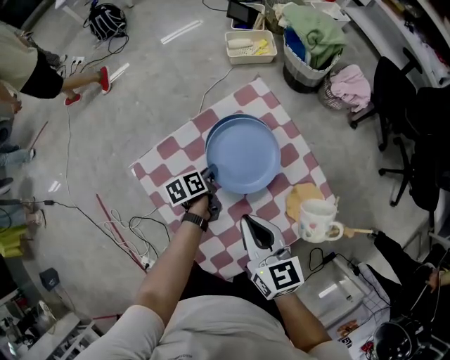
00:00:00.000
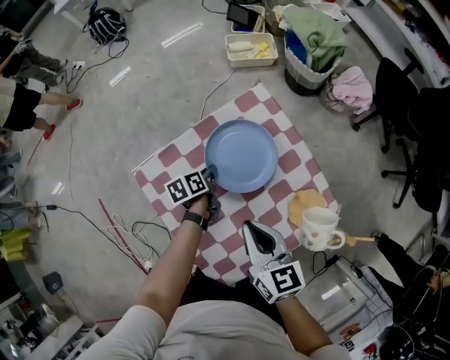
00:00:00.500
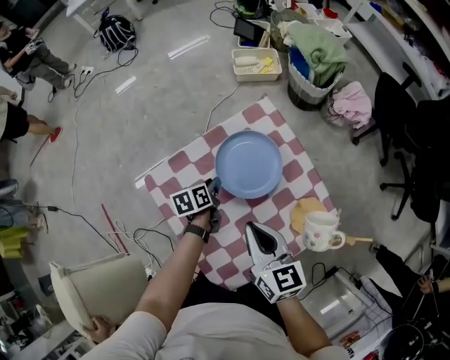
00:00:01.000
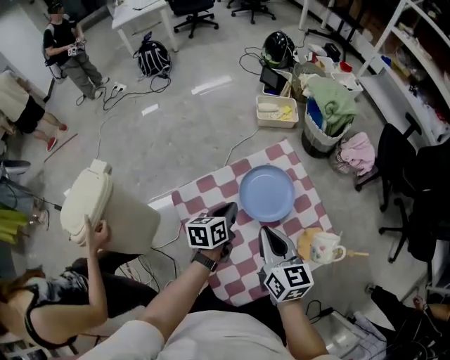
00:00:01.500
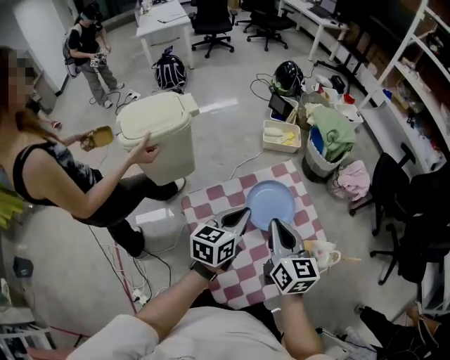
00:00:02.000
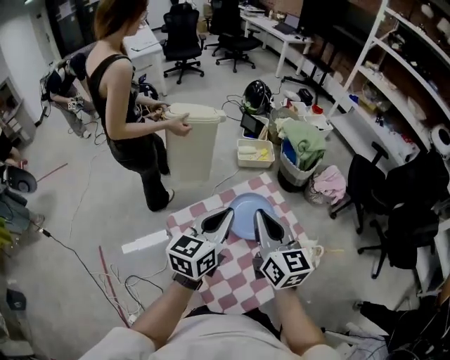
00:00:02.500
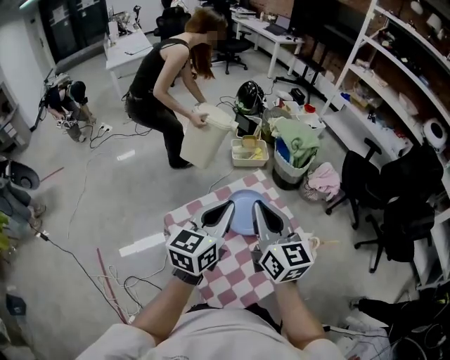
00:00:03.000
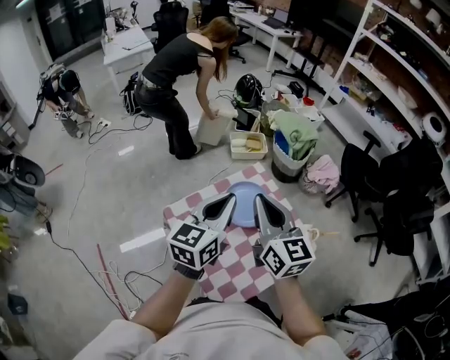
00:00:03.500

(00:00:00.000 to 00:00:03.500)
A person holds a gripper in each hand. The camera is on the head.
00:00:00.000 - 00:00:02.000: The right gripper goes approximately 10 cm upward. The left gripper travels upward by approximately 30 cm, and swivels roughly 50 degrees.
00:00:02.000 - 00:00:03.500: Both grippers move upward, some 15 cm.

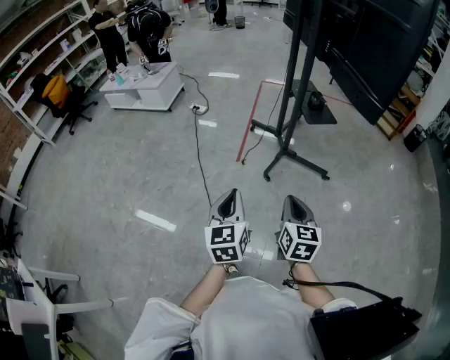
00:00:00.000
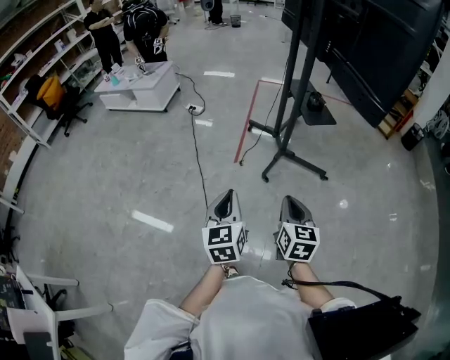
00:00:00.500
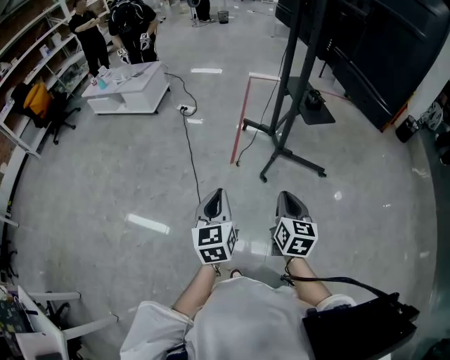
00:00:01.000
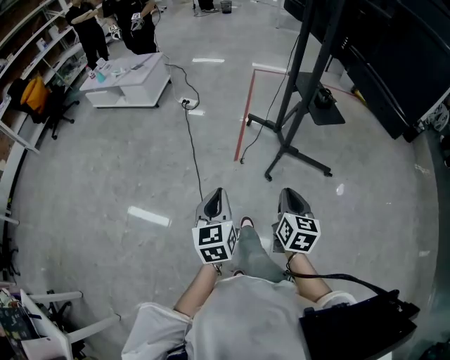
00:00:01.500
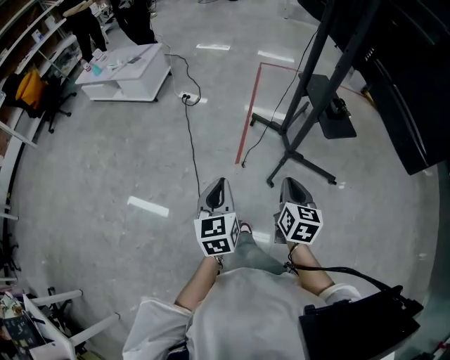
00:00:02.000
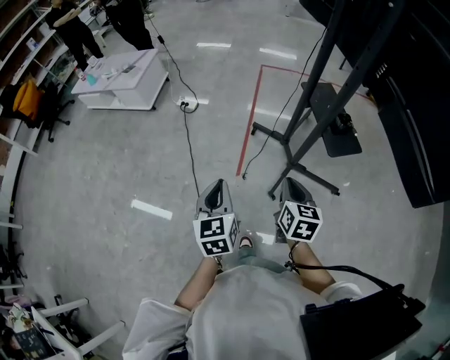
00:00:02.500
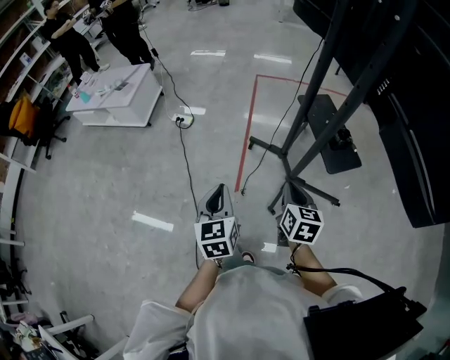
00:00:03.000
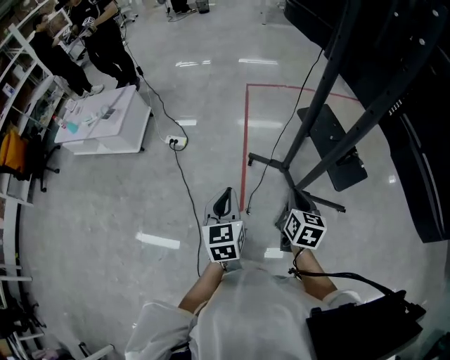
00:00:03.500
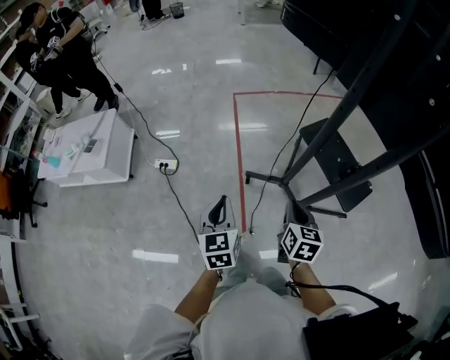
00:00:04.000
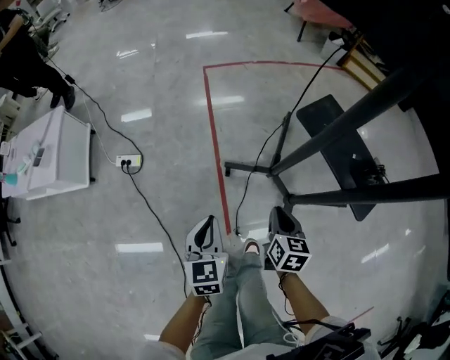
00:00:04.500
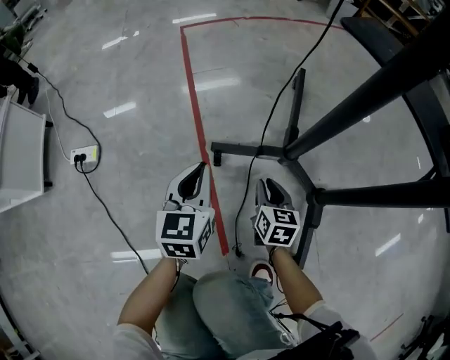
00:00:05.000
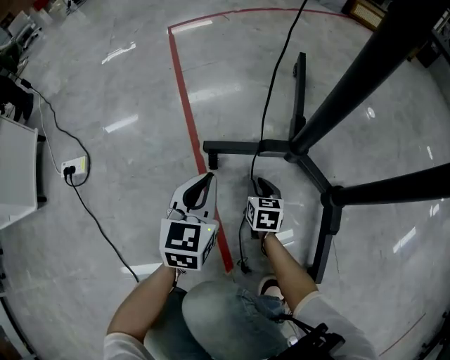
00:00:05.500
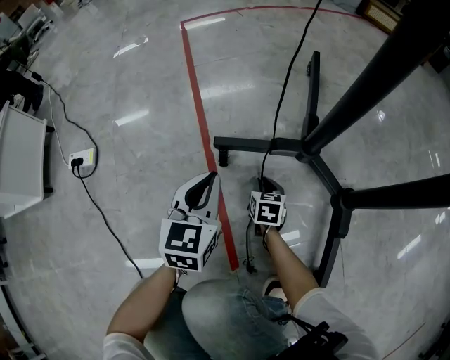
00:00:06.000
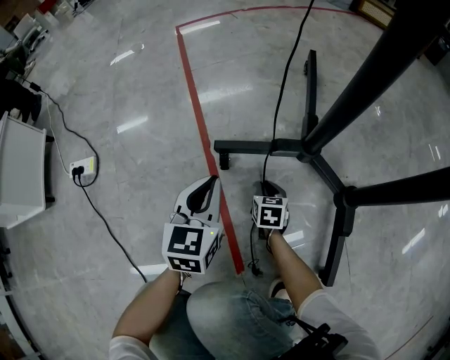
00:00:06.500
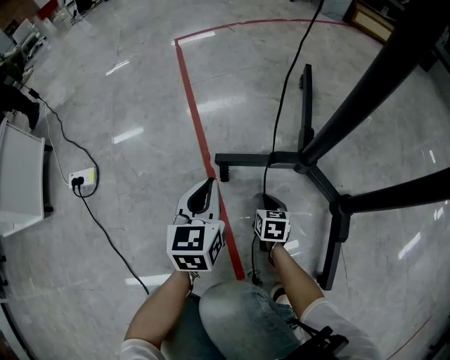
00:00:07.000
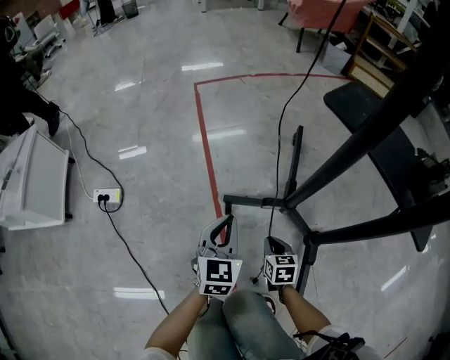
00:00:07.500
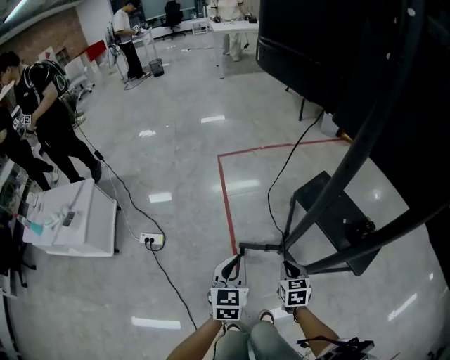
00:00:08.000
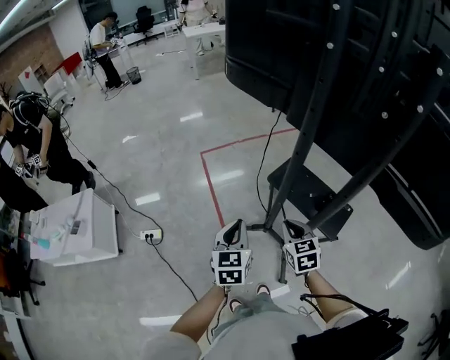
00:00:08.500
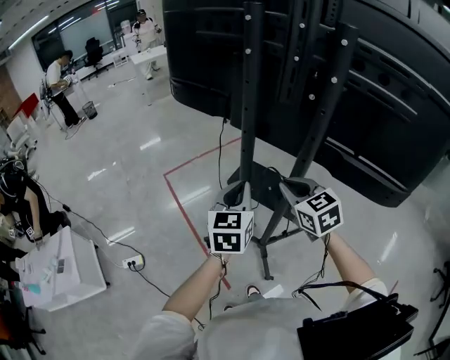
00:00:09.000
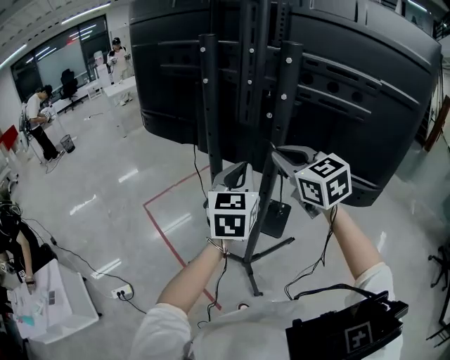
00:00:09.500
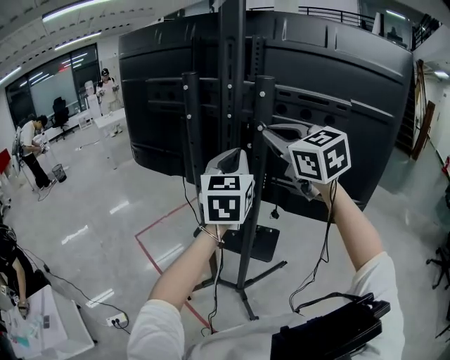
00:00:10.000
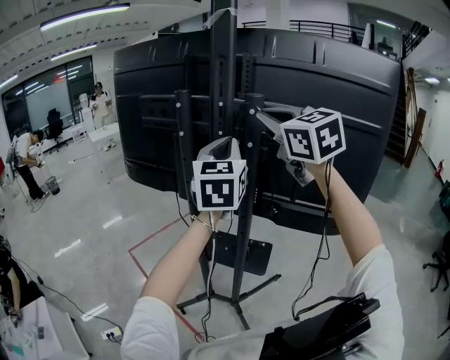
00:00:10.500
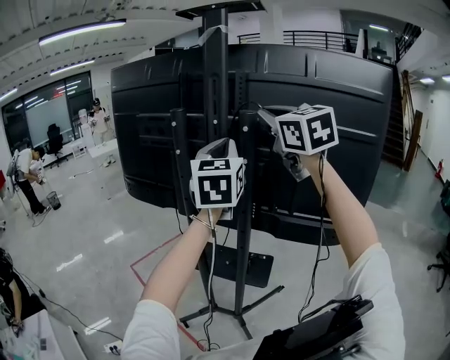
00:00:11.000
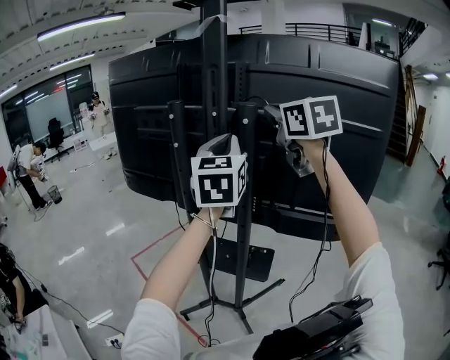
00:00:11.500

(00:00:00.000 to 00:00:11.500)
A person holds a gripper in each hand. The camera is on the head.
00:00:00.000 - 00:00:02.000: Both grippers move forward, approximately 30 cm.
00:00:02.000 - 00:00:04.000: The two grippers travel together, forward, some 50 cm. The right gripper turns by roughly 20 degrees.
00:00:04.000 - 00:00:06.000: Both grippers travel together downward, some 70 cm. The left gripper changes its angle by approximately 30 degrees.
00:00:06.000 - 00:00:07.500: Both grippers travel together upward, some 20 cm.
00:00:07.500 - 00:00:09.500: Both grippers move upward, roughly 90 cm. The right gripper tips its fingers upward by approximately 30 degrees. Meanwhile the left gripper changes its angle by some 40 degrees.
00:00:09.500 - 00:00:11.500: Both grippers travel together upward, about 25 cm.

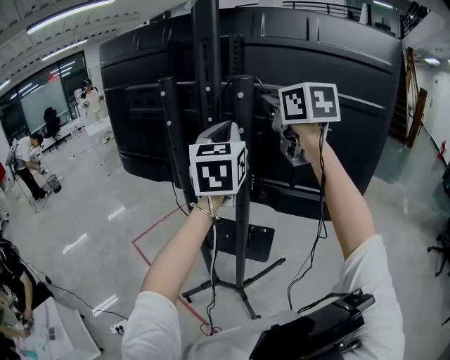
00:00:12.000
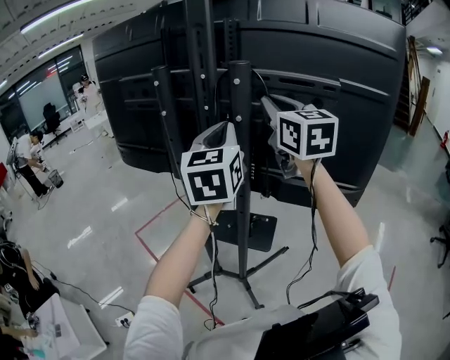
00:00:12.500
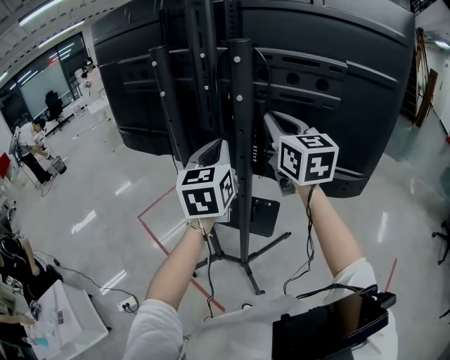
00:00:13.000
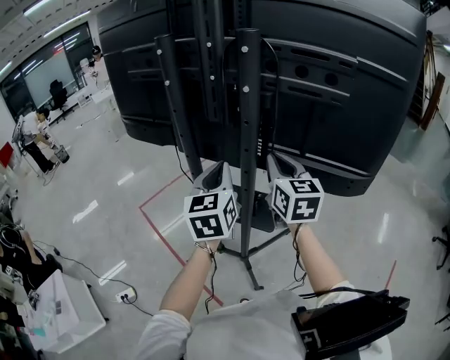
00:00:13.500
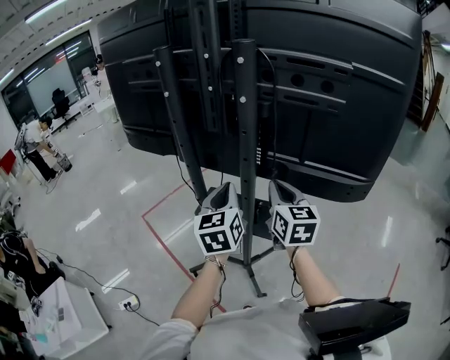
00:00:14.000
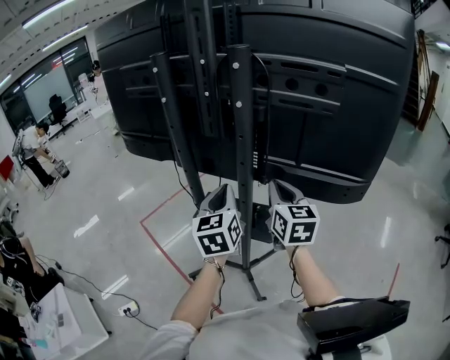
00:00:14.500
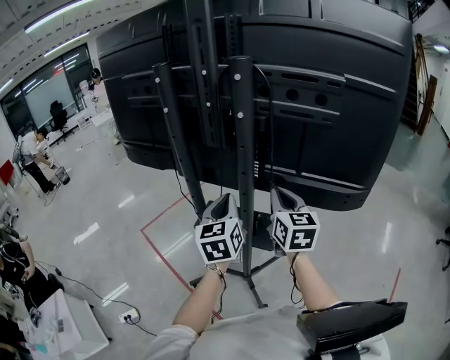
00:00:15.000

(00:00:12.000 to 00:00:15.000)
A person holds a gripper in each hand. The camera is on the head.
00:00:12.000 - 00:00:13.500: Both grippers travel together downward, some 20 cm.
00:00:13.500 - 00:00:15.000: The grippers move only a little.

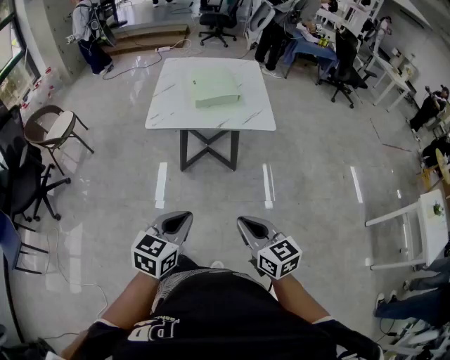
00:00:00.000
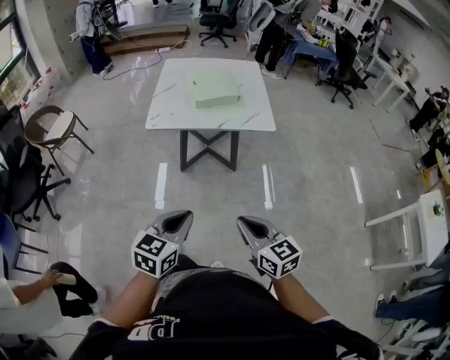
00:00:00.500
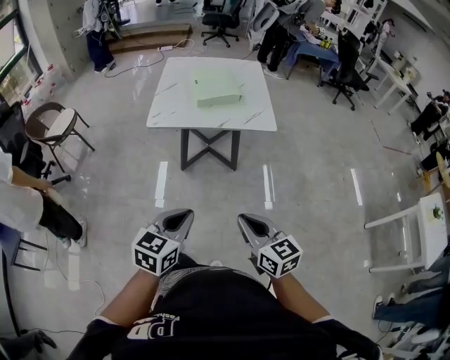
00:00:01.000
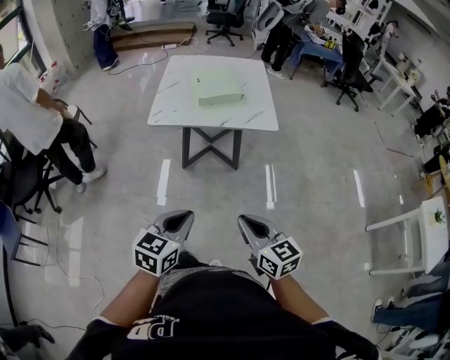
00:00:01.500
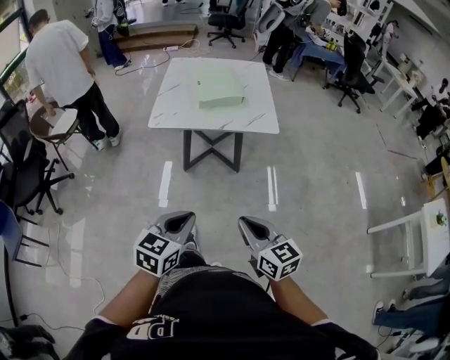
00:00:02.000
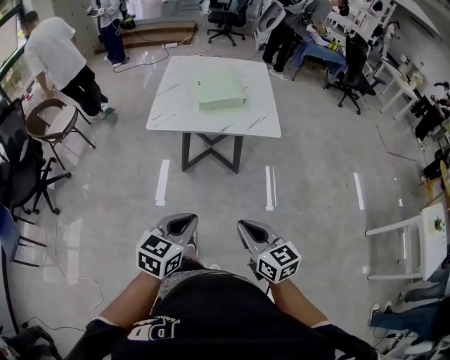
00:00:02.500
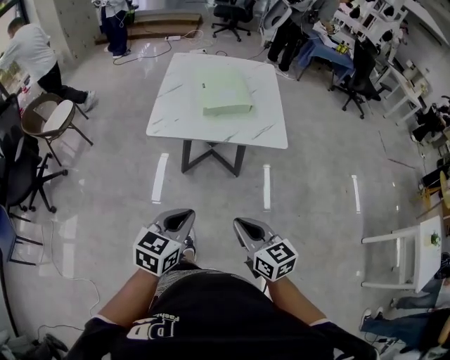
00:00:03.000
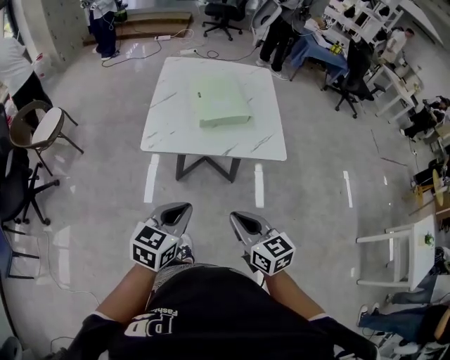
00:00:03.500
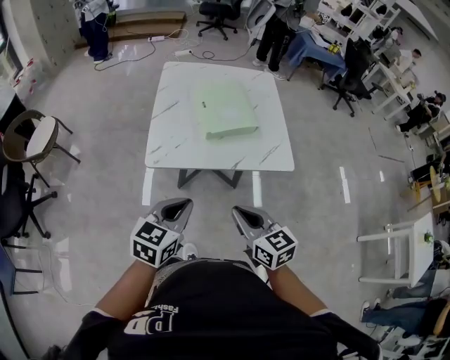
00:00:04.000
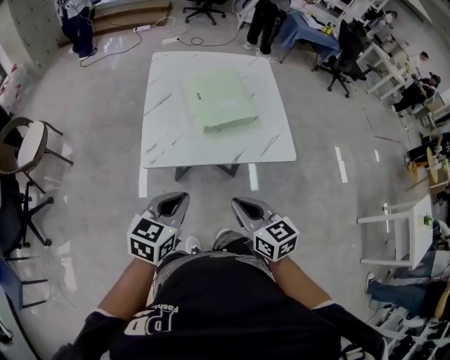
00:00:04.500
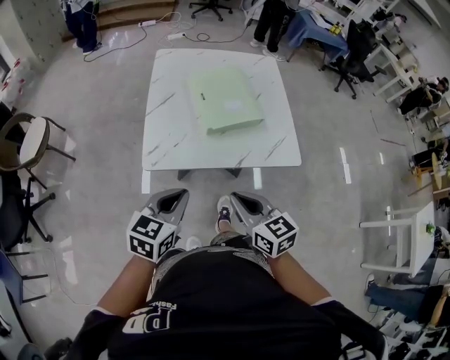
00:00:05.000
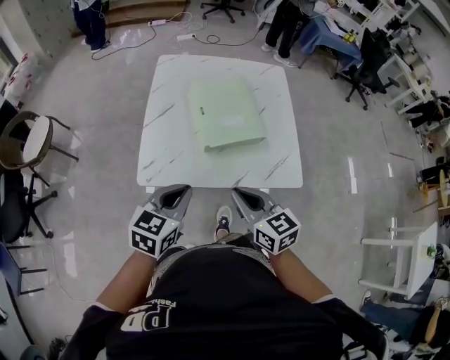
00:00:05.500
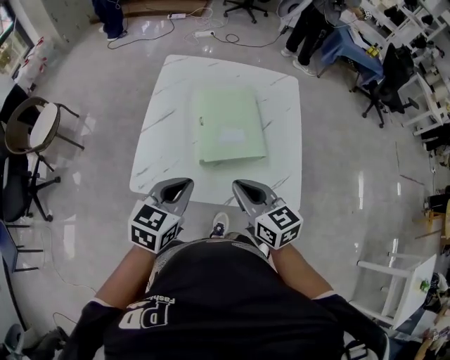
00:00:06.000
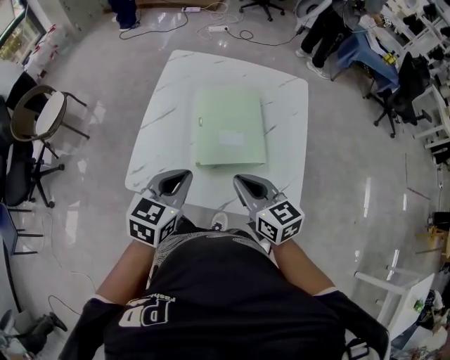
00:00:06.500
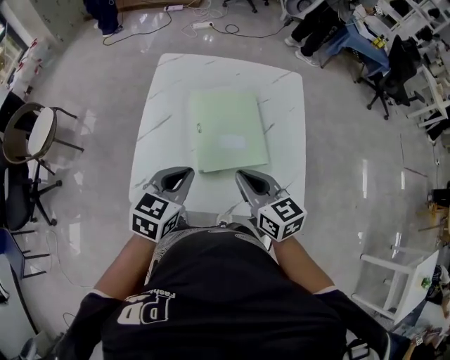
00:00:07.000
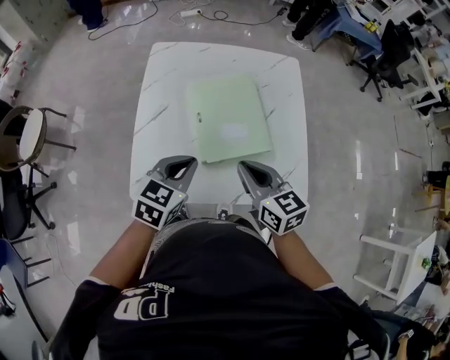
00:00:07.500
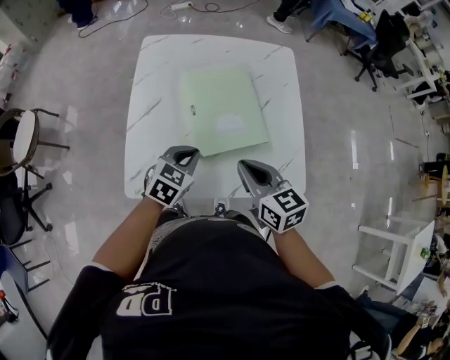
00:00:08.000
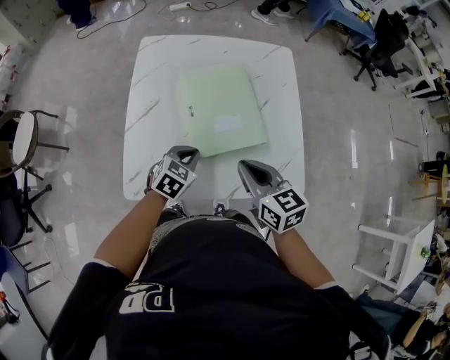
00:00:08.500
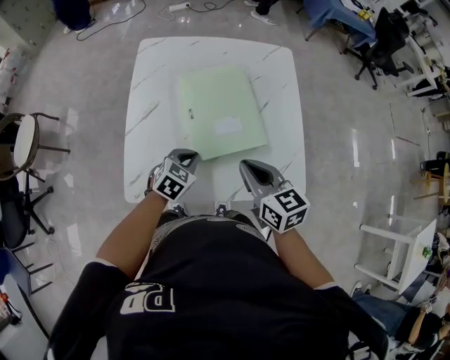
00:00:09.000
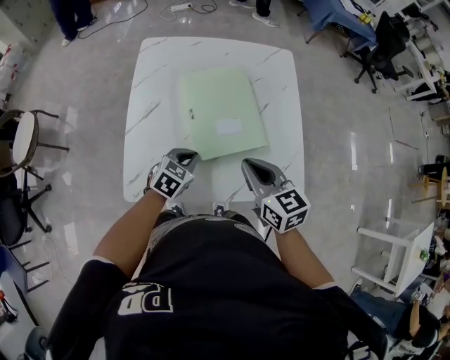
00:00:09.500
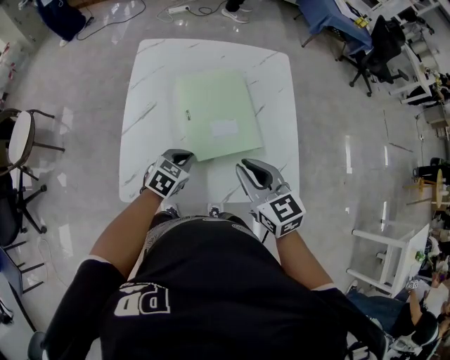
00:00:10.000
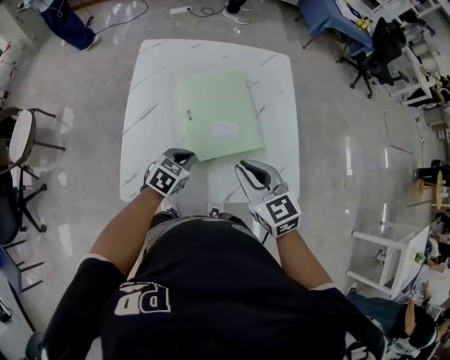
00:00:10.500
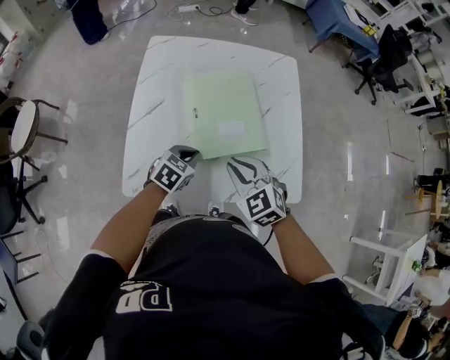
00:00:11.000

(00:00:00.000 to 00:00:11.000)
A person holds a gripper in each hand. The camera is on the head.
00:00:00.000 - 00:00:02.000: The grippers stay close to where they were, moving slightly.
00:00:02.000 - 00:00:03.500: The two grippers go about 20 cm forward.
00:00:03.500 - 00:00:05.500: The two grippers go approximately 25 cm forward.
00:00:05.500 - 00:00:07.500: The grippers both shift forward by about 15 cm.
00:00:07.500 - 00:00:09.000: The left gripper moves downward, roughly 15 cm.
00:00:09.000 - 00:00:11.000: The right gripper changes place by some 5 cm, and turns by approximately 40 degrees.
